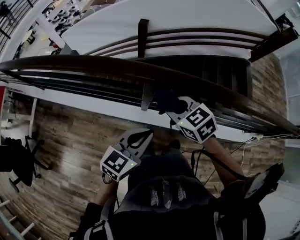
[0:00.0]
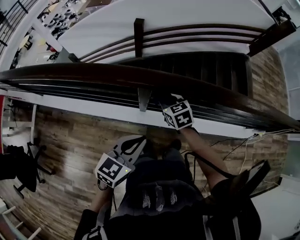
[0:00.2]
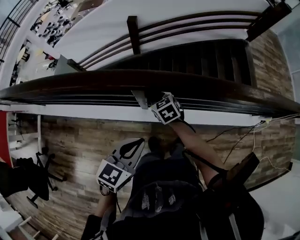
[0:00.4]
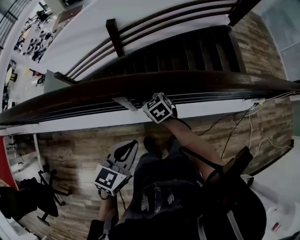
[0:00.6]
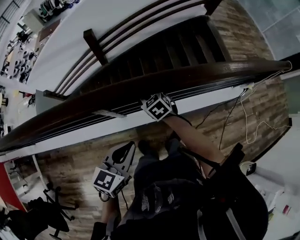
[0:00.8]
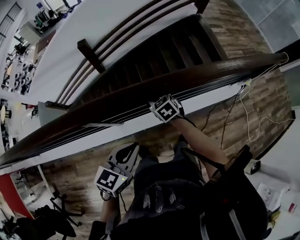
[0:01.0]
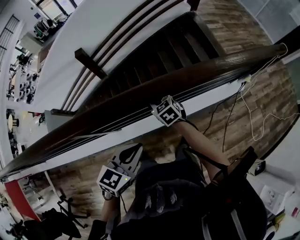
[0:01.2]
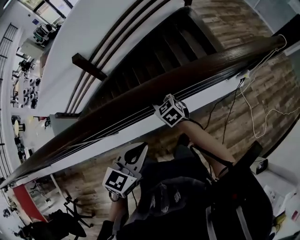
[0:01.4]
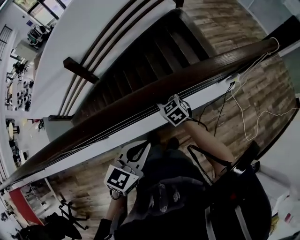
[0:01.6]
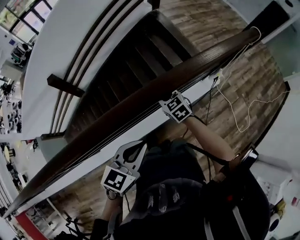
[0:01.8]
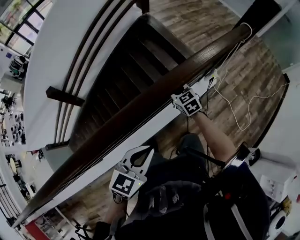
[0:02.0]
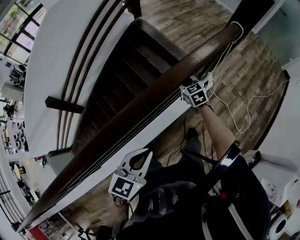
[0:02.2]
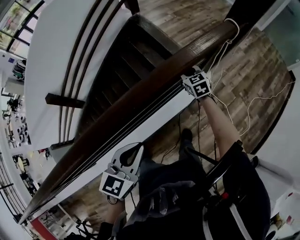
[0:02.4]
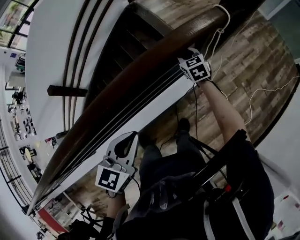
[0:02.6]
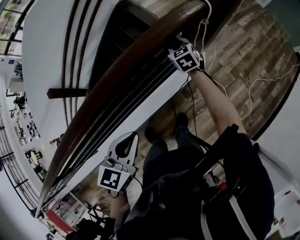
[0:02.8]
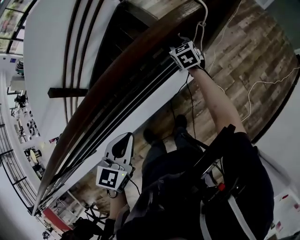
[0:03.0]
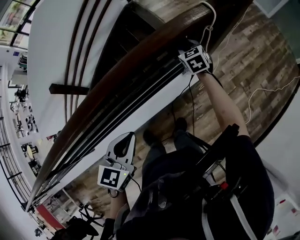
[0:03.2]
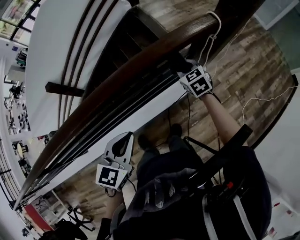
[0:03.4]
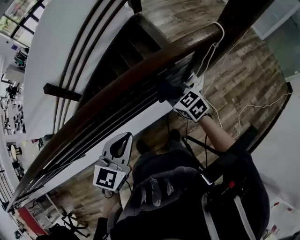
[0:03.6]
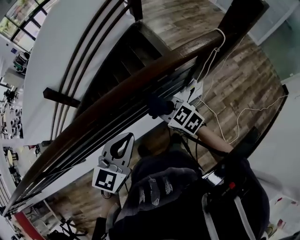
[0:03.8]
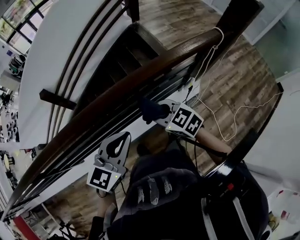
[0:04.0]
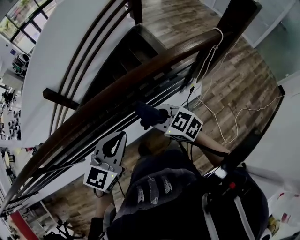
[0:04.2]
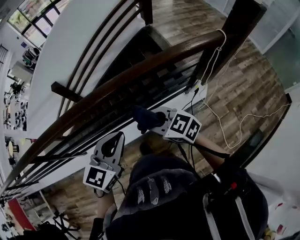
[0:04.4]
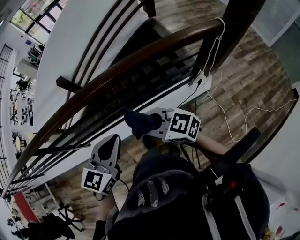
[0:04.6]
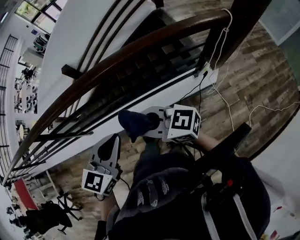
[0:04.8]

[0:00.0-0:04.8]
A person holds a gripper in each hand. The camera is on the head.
0:00.0 to 0:01.6: The pair of grippers is taken roughly 50 cm. The right gripper rotates some 40 degrees. Meanwhile the left gripper swivels some 30 degrees.
0:01.6 to 0:03.2: Both grippers are carried to the right and forward, about 50 cm. The right gripper swivels roughly 30 degrees.
0:03.2 to 0:04.8: The right gripper moves approximately 60 cm, and angles its fingers upward, by roughly 30 degrees; the left gripper shifts by approximately 25 cm.

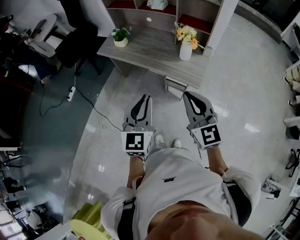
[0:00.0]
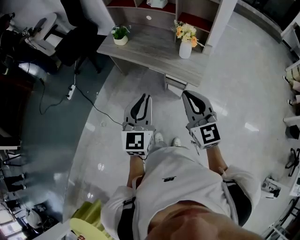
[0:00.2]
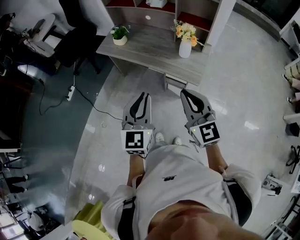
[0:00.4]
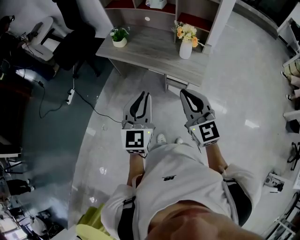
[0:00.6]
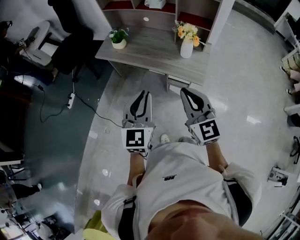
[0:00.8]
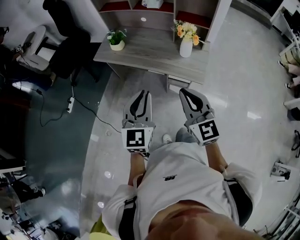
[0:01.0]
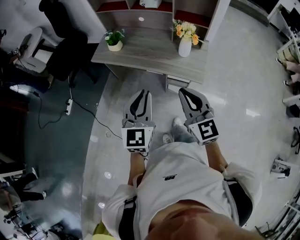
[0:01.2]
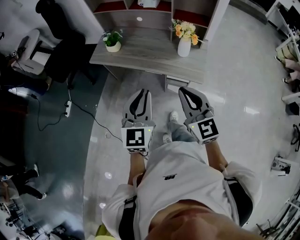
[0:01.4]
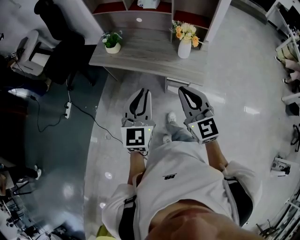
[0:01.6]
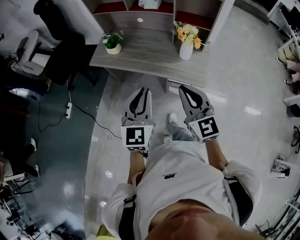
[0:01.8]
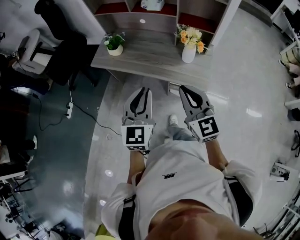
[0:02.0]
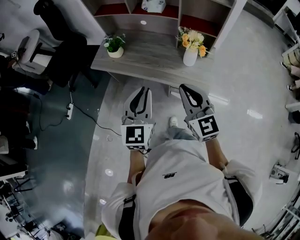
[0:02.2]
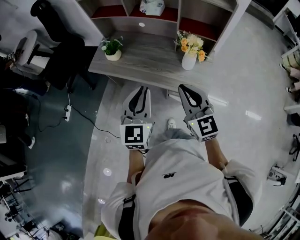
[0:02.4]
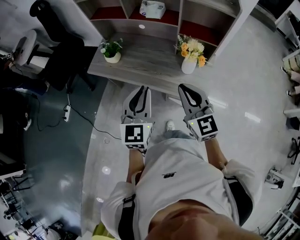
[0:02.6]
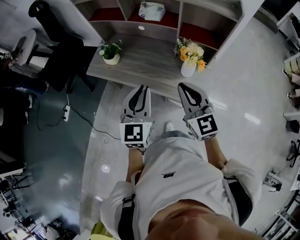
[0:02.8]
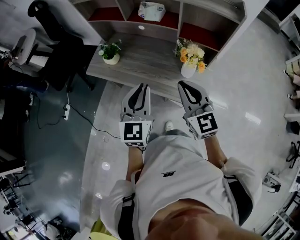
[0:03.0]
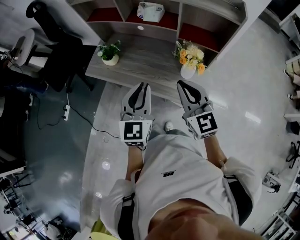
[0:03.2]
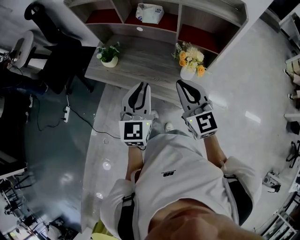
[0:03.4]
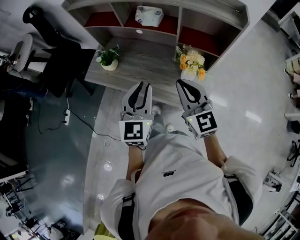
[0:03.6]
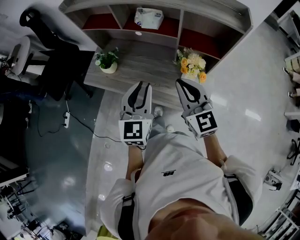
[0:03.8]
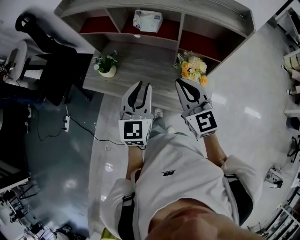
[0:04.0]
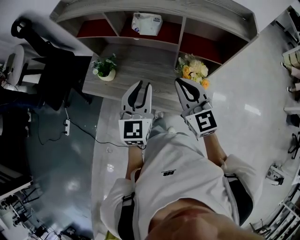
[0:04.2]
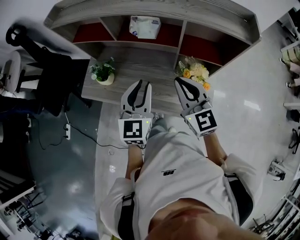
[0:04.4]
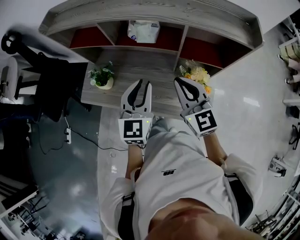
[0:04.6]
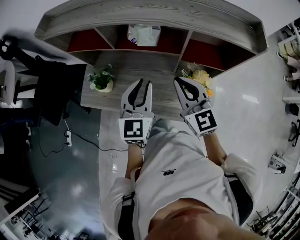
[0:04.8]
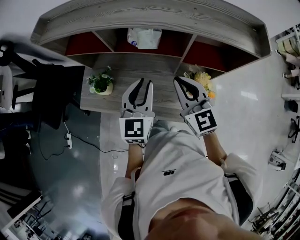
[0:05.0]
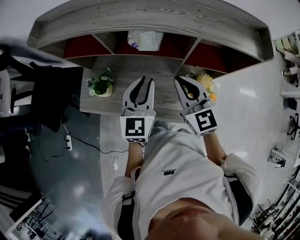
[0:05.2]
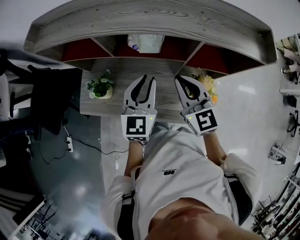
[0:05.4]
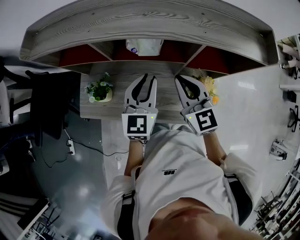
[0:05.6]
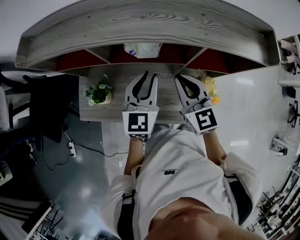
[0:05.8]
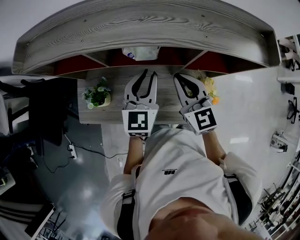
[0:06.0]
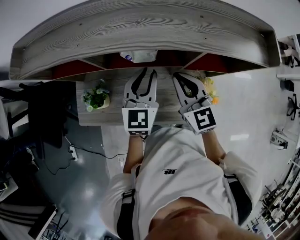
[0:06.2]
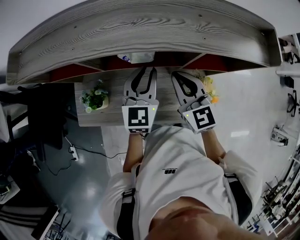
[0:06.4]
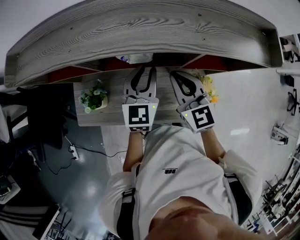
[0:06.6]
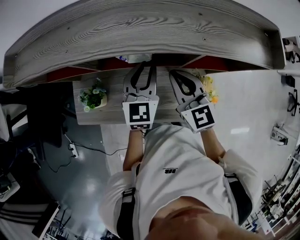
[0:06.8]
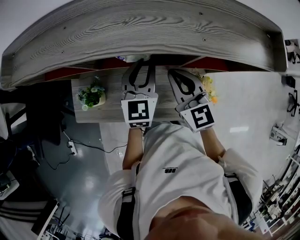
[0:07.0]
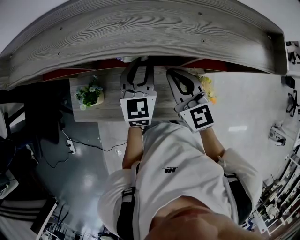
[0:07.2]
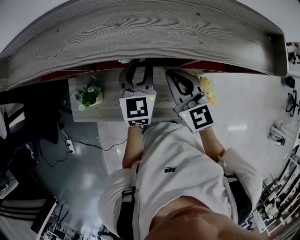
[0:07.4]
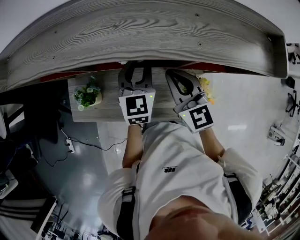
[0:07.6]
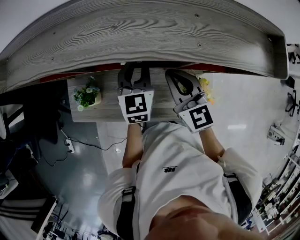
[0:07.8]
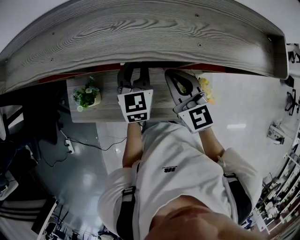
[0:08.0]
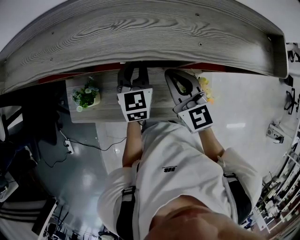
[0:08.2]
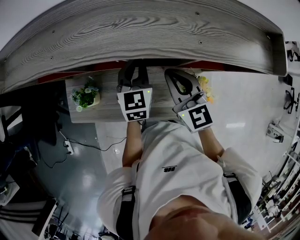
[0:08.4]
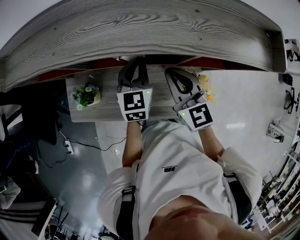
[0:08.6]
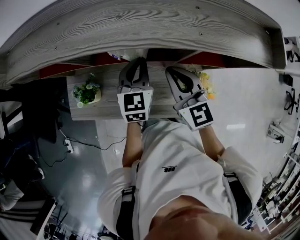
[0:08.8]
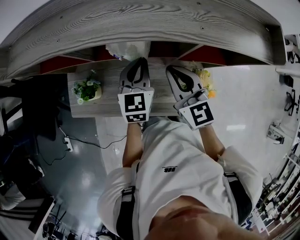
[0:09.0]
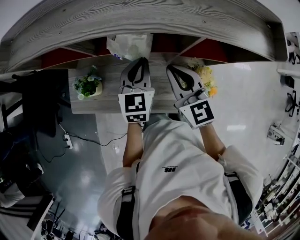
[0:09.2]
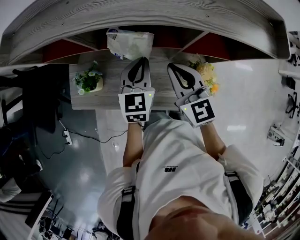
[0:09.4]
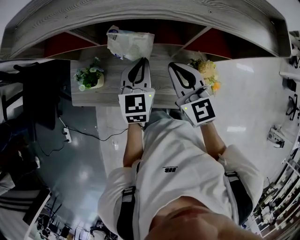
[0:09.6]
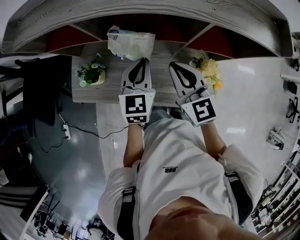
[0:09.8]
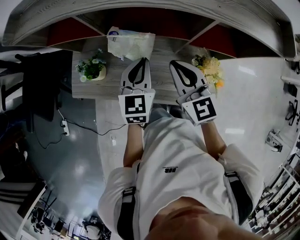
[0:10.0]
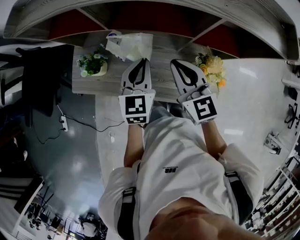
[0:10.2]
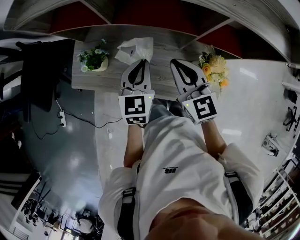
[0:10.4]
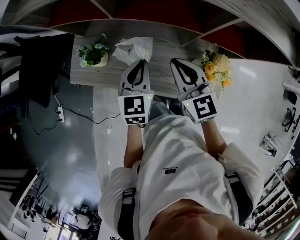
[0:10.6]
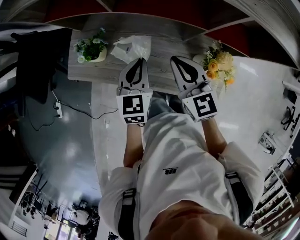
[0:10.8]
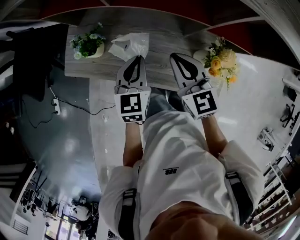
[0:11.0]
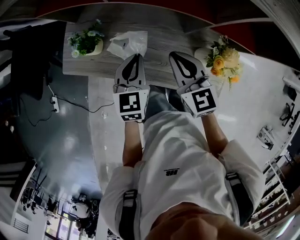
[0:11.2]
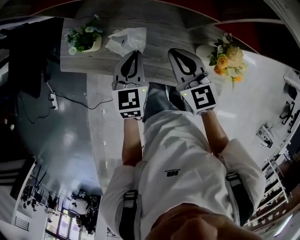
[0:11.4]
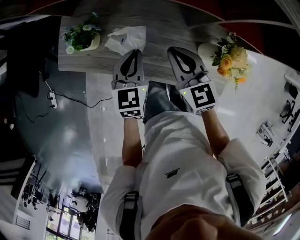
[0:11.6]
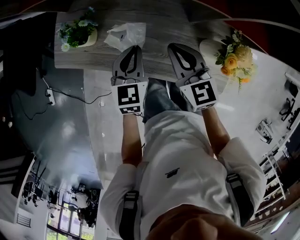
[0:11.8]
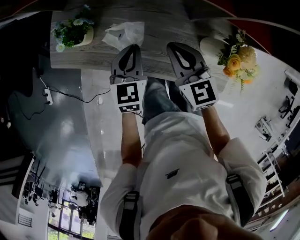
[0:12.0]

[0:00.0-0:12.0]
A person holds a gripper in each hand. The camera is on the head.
0:00.0 to 0:01.6: The right gripper travels to the left and forward by roughly 10 cm. Meanwhile the left gripper travels forward and to the left by about 10 cm.
0:01.6 to 0:03.0: The grippers both shift forward by some 20 cm.
0:03.0 to 0:04.4: The two grippers go some 15 cm forward.
0:04.4 to 0:06.0: Both grippers move forward, about 15 cm.
0:06.0 to 0:07.6: The left gripper travels forward by roughly 5 cm.
0:07.6 to 0:09.0: The left gripper closes up.
0:09.0 to 0:10.4: The left gripper moves backward and to the left, some 10 cm. The right gripper travels backward and to the left by approximately 10 cm.
0:10.4 to 0:12.0: The grippers both shift downward by some 15 cm.

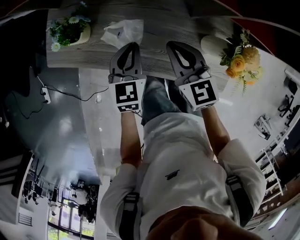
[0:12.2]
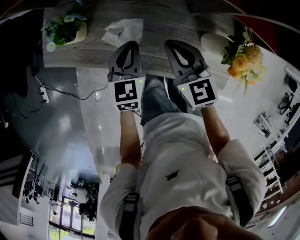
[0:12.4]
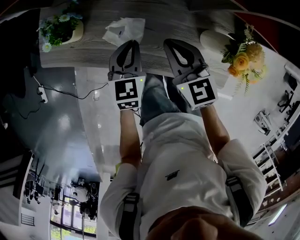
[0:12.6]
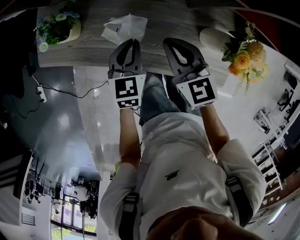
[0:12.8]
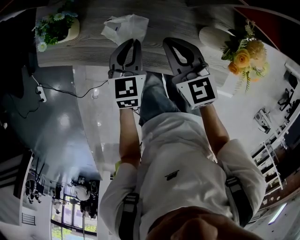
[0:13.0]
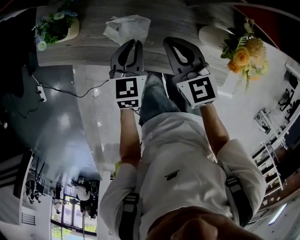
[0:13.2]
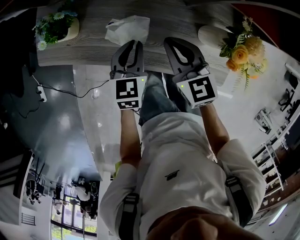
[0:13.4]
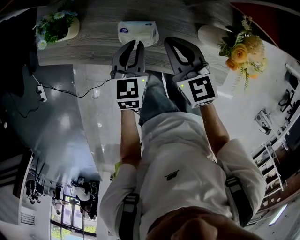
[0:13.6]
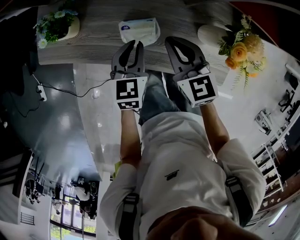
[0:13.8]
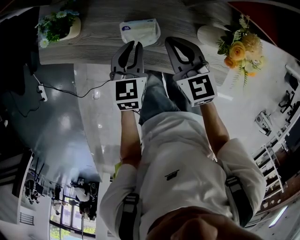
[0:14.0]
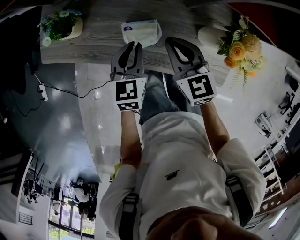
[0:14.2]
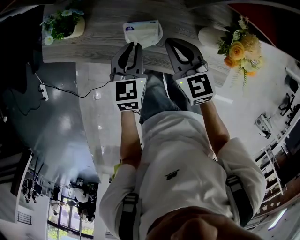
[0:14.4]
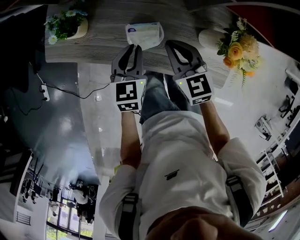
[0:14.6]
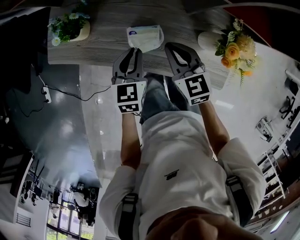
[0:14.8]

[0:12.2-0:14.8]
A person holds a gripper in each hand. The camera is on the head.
0:12.2 to 0:13.4: The left gripper shifts by about 5 cm.
0:13.4 to 0:14.8: The grippers stay close to where they were, moving slightly.

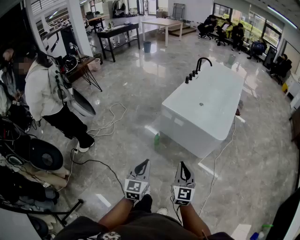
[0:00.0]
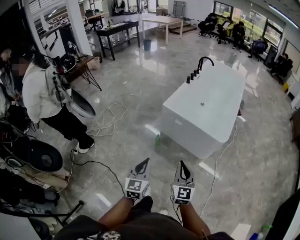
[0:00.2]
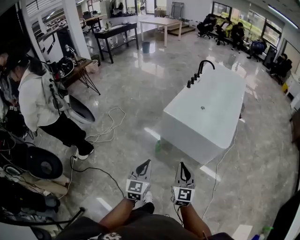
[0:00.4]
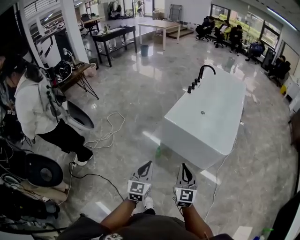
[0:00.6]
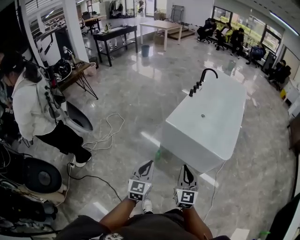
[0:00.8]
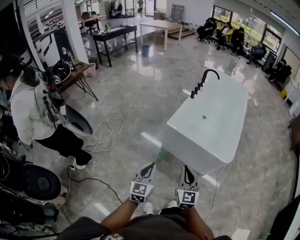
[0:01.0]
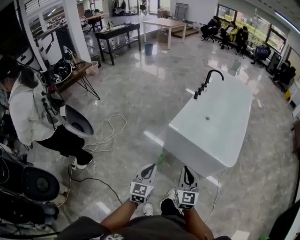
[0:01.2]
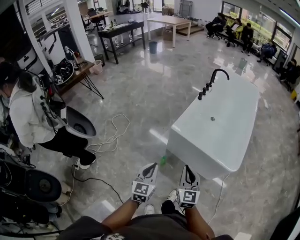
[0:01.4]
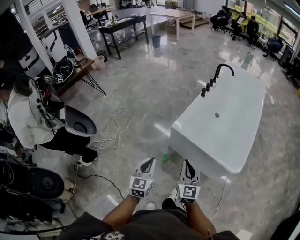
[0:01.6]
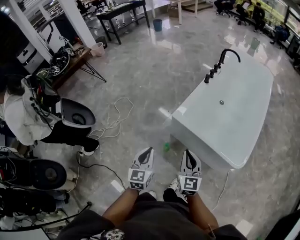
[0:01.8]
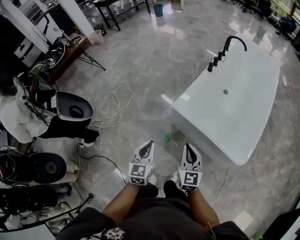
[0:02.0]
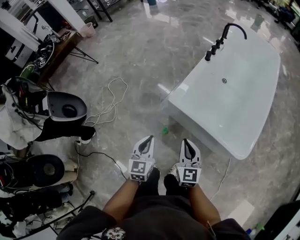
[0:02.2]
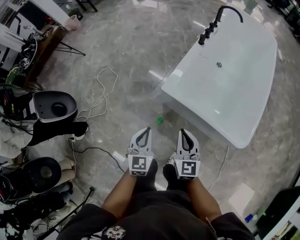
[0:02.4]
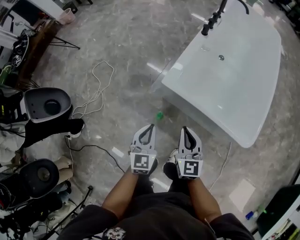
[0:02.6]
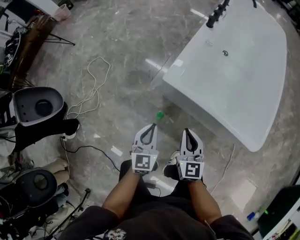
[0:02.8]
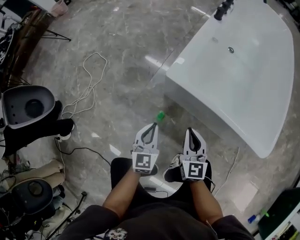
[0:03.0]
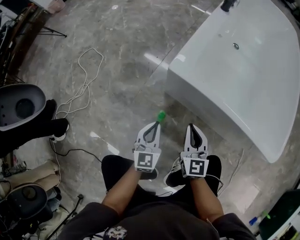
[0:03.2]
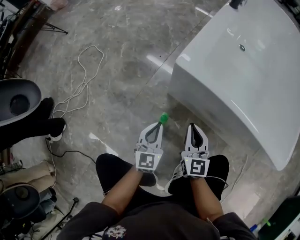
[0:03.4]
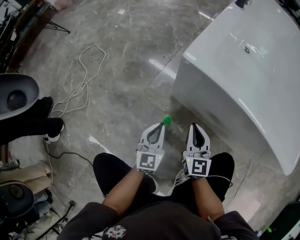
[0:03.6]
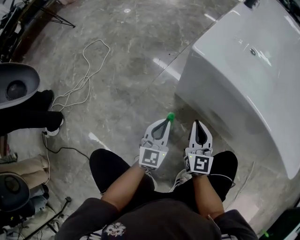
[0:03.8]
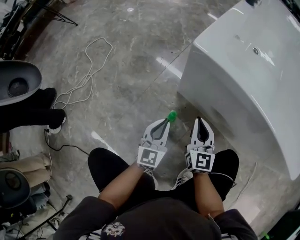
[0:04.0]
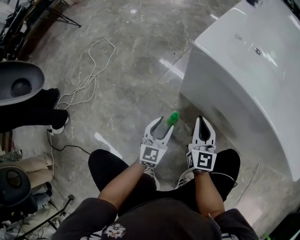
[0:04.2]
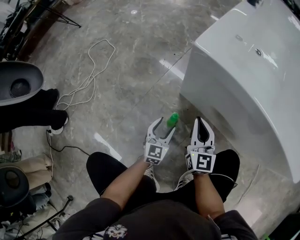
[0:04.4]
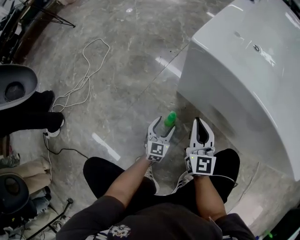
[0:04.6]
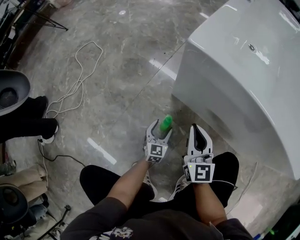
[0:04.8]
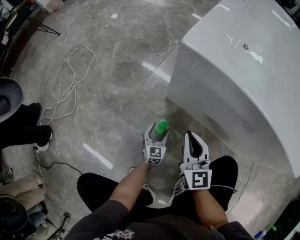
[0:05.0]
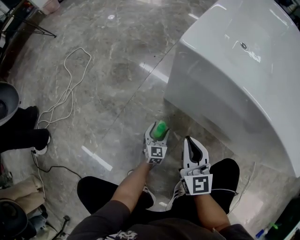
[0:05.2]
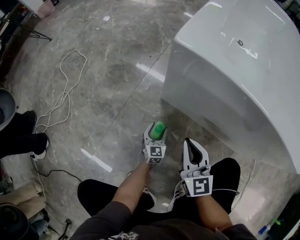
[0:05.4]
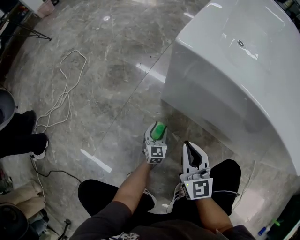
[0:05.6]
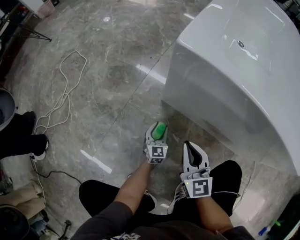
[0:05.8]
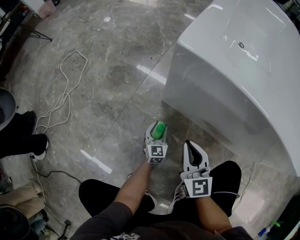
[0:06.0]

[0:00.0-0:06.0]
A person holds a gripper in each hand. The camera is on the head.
0:00.0 to 0:01.6: Both grippers travel together forward, some 35 cm.
0:01.6 to 0:03.0: Both grippers move downward and forward, roughly 40 cm.
0:03.0 to 0:04.4: The grippers both shift downward by about 30 cm. The left gripper opens its fingers.
0:04.4 to 0:06.0: The left gripper travels downward and forward by roughly 15 cm.
